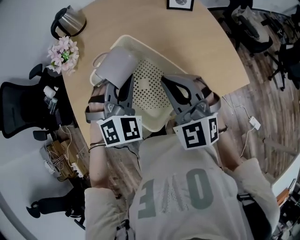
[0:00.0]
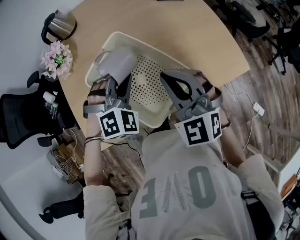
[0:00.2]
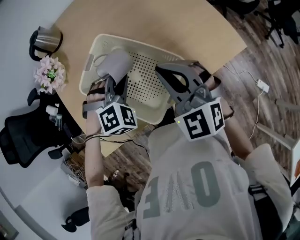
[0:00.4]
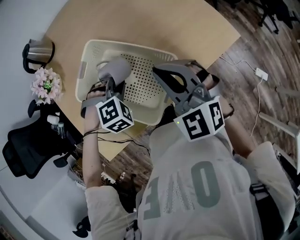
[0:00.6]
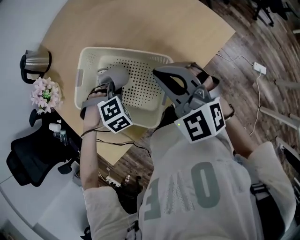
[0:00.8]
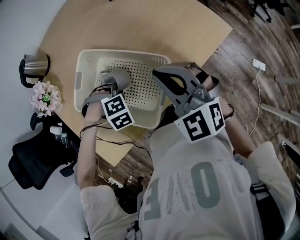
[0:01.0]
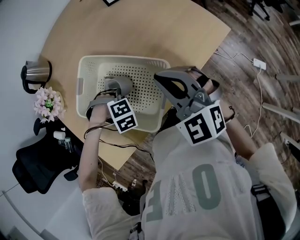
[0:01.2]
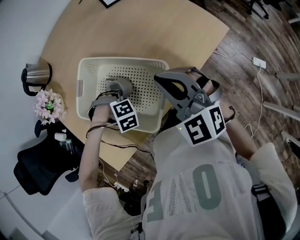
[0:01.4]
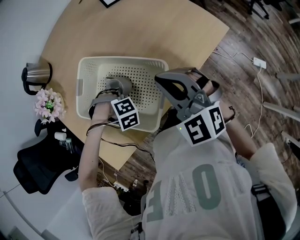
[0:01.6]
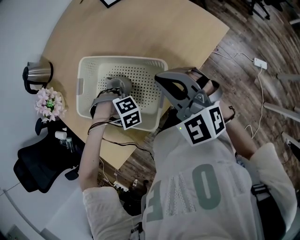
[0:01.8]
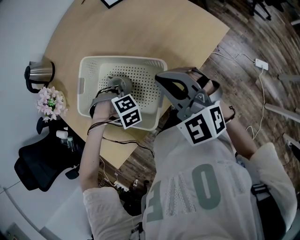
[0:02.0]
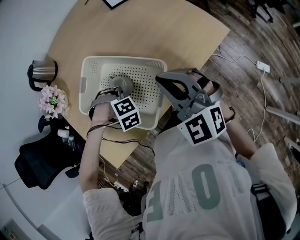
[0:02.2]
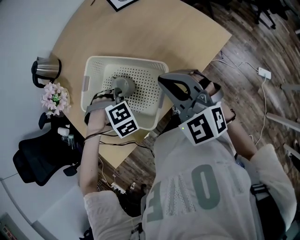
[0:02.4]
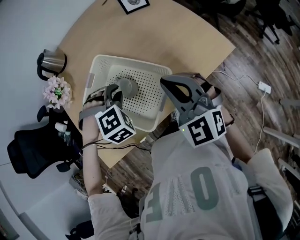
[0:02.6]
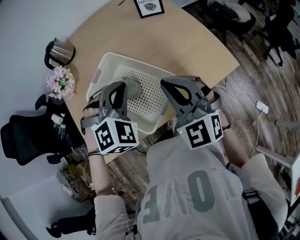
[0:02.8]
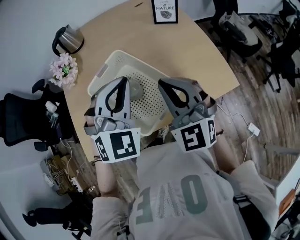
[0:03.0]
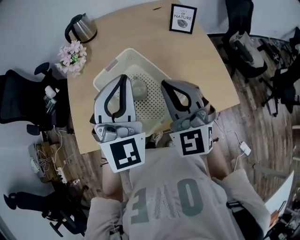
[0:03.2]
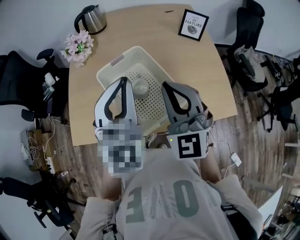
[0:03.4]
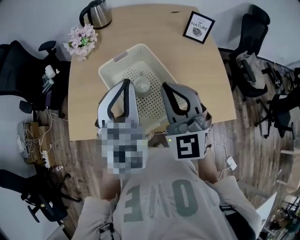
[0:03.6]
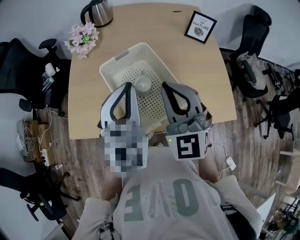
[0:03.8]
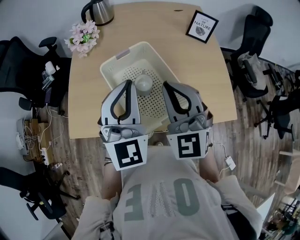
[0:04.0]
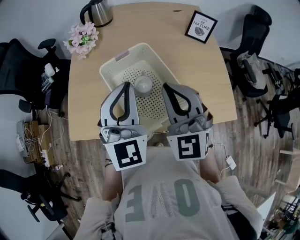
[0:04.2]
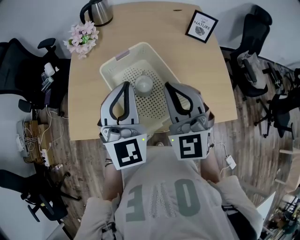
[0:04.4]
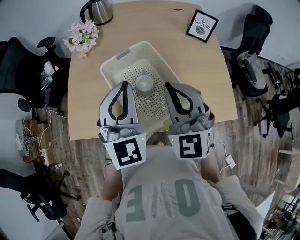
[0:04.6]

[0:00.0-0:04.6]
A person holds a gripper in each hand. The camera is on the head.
0:00.0 to 0:01.6: The left gripper moves downward, approximately 25 cm, and tilts its fingers approximately 50 degrees downward. The right gripper changes place by approximately 10 cm.
0:01.6 to 0:03.0: The left gripper moves upward, some 30 cm, and angles its fingers upward, by approximately 60 degrees. The right gripper is displaced upward by approximately 10 cm.
0:03.0 to 0:04.6: The left gripper moves to the left, some 10 cm, and turns by approximately 40 degrees. Meanwhile the right gripper travels to the left by roughly 5 cm.

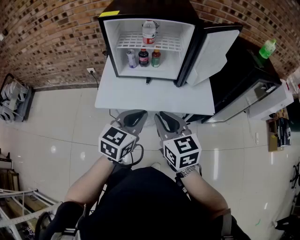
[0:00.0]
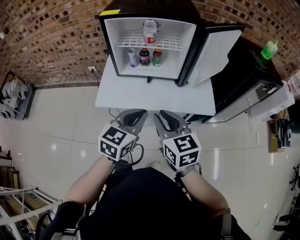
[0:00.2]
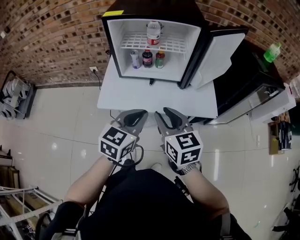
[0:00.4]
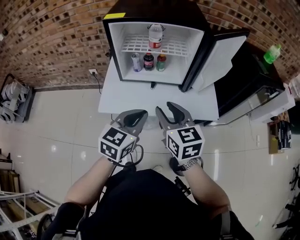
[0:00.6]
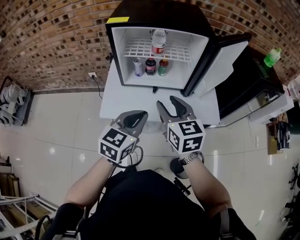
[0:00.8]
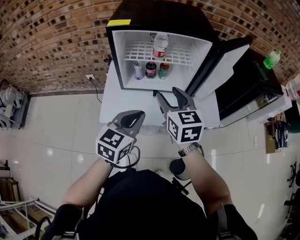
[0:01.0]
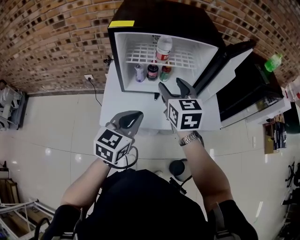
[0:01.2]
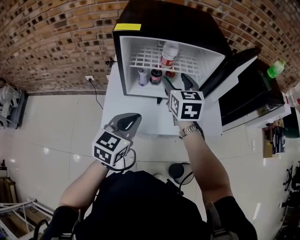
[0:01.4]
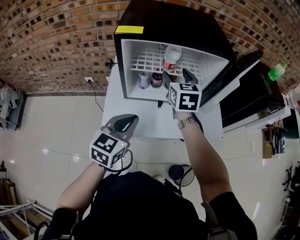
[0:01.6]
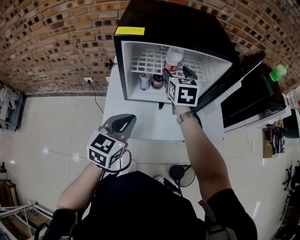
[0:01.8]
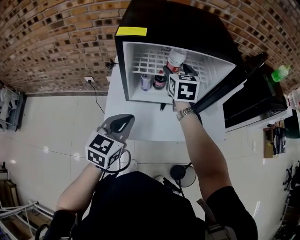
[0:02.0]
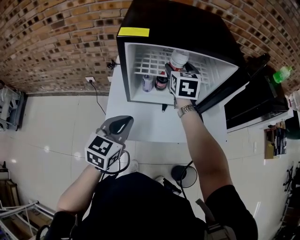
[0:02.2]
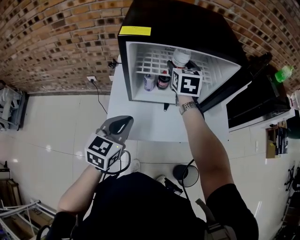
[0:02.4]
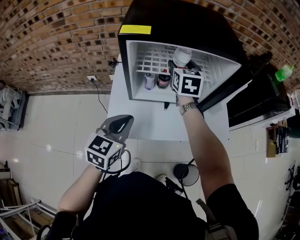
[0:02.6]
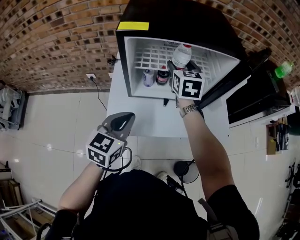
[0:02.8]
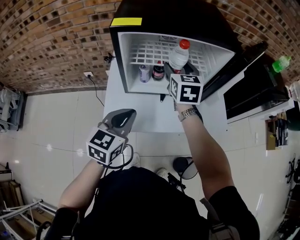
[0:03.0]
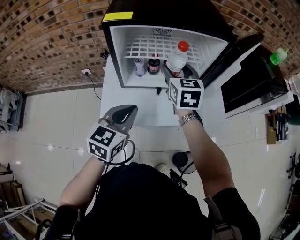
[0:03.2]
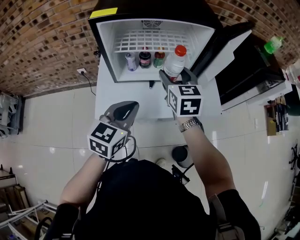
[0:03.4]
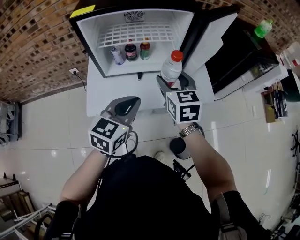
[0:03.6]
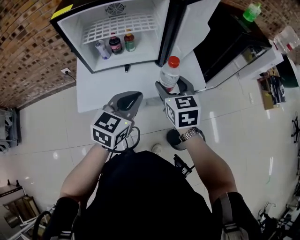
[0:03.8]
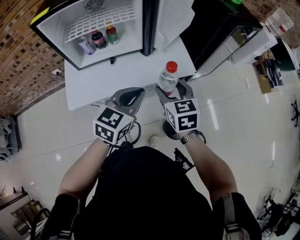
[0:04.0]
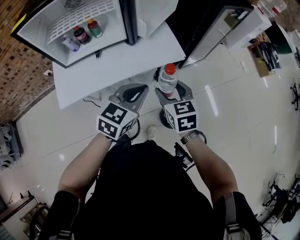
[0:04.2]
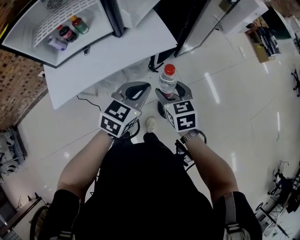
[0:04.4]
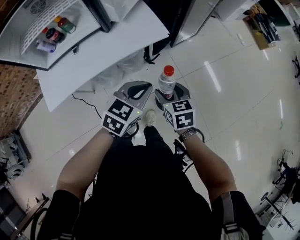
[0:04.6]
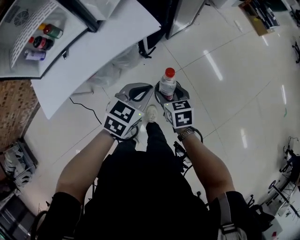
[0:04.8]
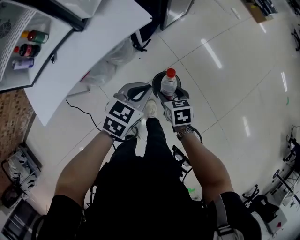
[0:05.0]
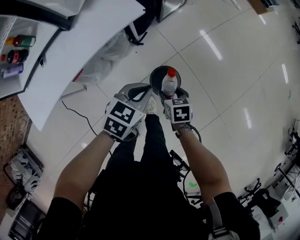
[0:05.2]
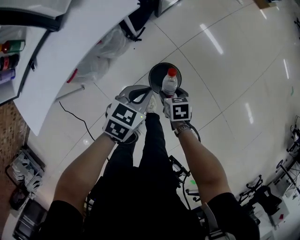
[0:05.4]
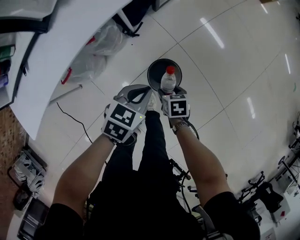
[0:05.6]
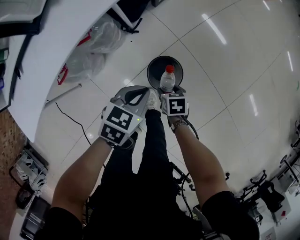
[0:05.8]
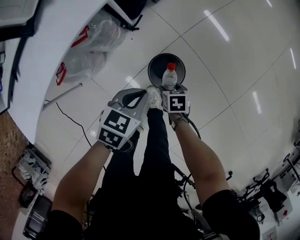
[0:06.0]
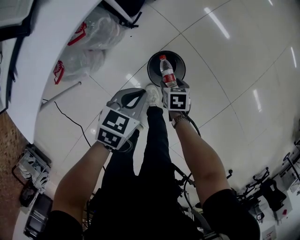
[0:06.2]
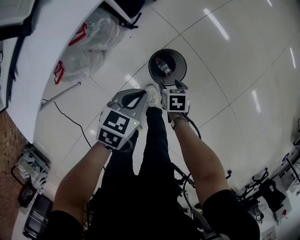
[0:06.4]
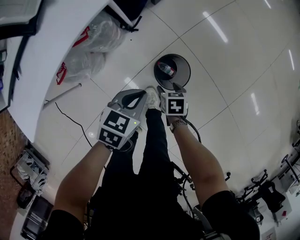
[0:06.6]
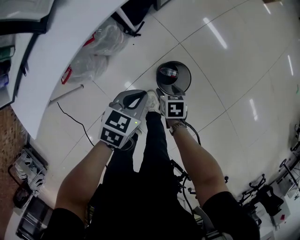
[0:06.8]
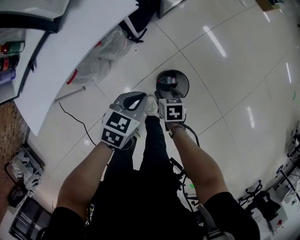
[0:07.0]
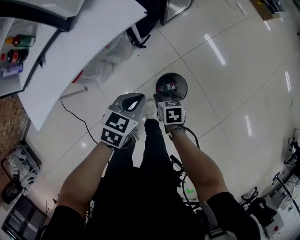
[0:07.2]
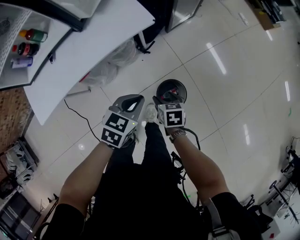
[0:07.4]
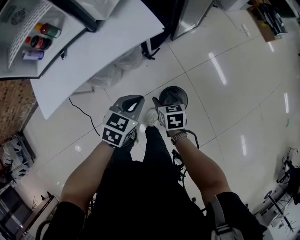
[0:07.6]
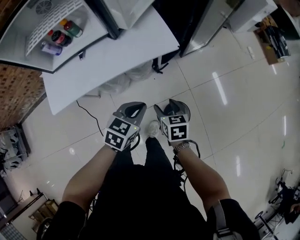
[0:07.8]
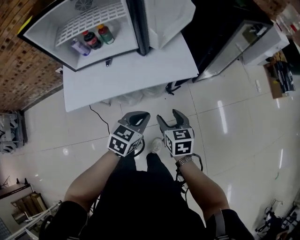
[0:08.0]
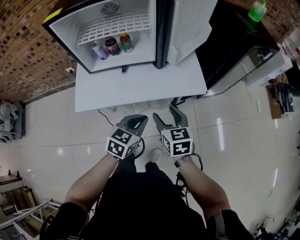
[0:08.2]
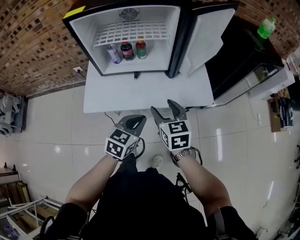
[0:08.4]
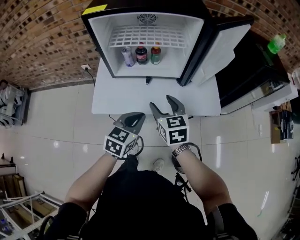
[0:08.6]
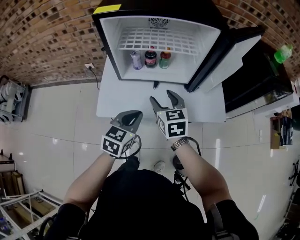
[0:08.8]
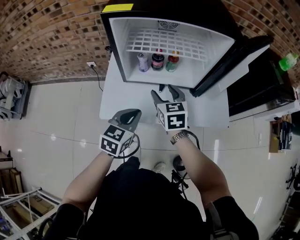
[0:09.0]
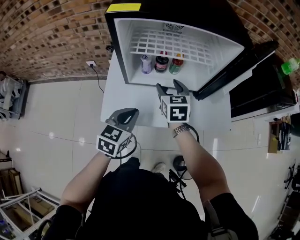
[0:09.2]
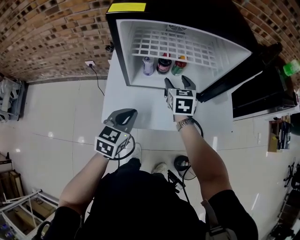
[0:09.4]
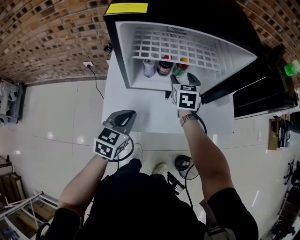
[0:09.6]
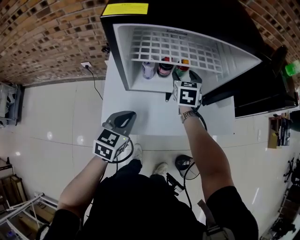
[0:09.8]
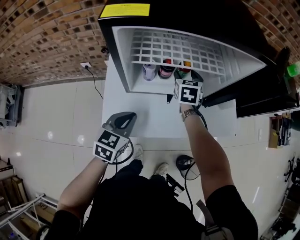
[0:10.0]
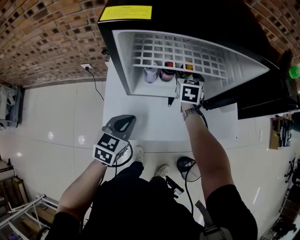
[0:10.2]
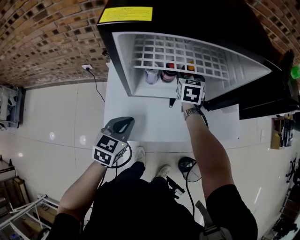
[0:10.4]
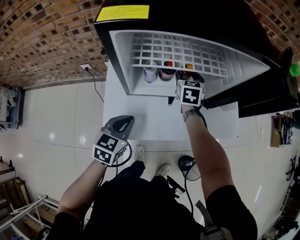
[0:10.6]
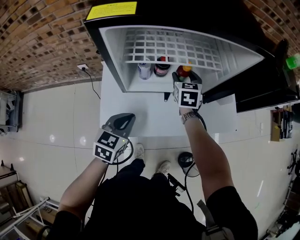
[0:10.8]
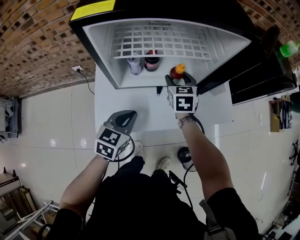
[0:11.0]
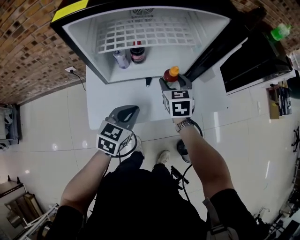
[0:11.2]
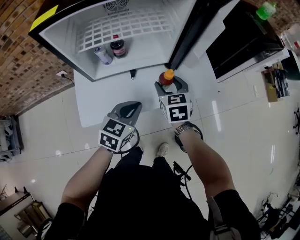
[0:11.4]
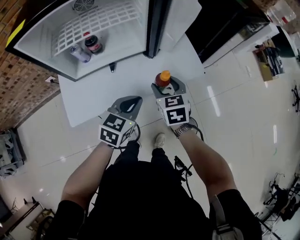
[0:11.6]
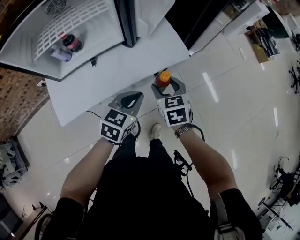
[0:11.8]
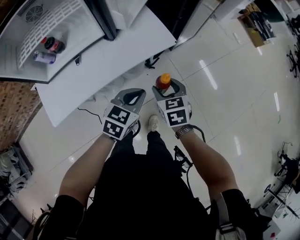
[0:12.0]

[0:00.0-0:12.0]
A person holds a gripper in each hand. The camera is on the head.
0:00.0 to 0:01.6: The right gripper moves forward, about 35 cm, rotates roughly 20 degrees, and opens its fingers, while the left gripper travels to the left and forward by some 20 cm.
0:01.6 to 0:03.0: The right gripper moves approximately 10 cm forward and comes back.
0:03.0 to 0:04.4: The two grippers travel together, to the right and backward, approximately 40 cm. The left gripper changes its angle by some 30 degrees, while the right gripper goes some 20 cm downward, and swivels roughly 20 degrees.
0:04.4 to 0:06.0: The two grippers go some 35 cm downward. The left gripper turns by some 30 degrees; the right gripper angles its fingers downward, by roughly 30 degrees.
0:06.0 to 0:07.6: The right gripper travels upward by approximately 25 cm, and swivels approximately 30 degrees, while the left gripper moves upward, approximately 15 cm, and changes its angle by some 20 degrees.
0:07.6 to 0:09.0: The left gripper shifts by about 40 cm, and turns by about 40 degrees, while the right gripper changes place by about 50 cm, and changes its angle by roughly 50 degrees.
0:09.0 to 0:10.4: The left gripper heads to the left and forward, covering roughly 10 cm, while the right gripper travels forward by roughly 20 cm, and changes its angle by roughly 20 degrees.
0:10.4 to 0:12.0: The right gripper travels to the right and backward by about 50 cm, while the left gripper moves to the right, about 40 cm, and turns by roughly 40 degrees.

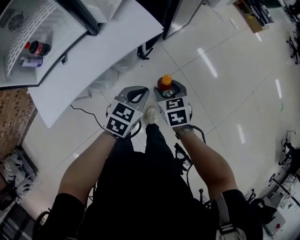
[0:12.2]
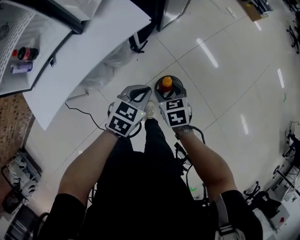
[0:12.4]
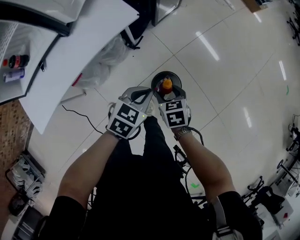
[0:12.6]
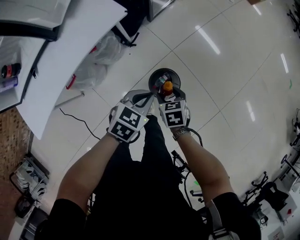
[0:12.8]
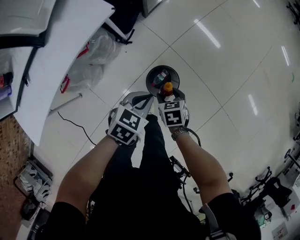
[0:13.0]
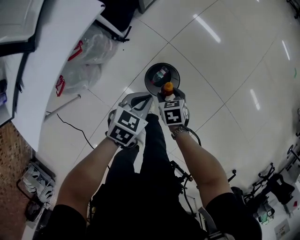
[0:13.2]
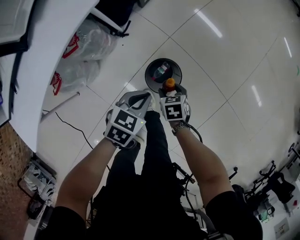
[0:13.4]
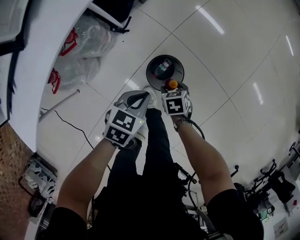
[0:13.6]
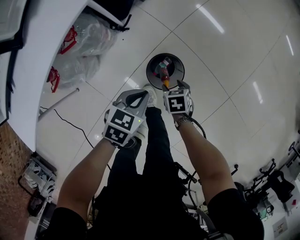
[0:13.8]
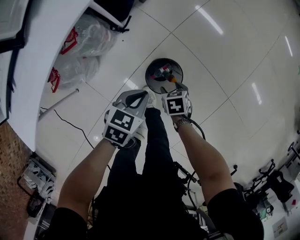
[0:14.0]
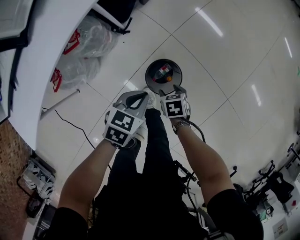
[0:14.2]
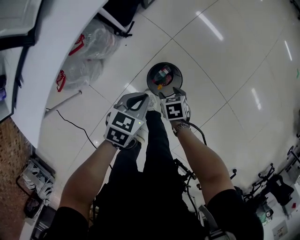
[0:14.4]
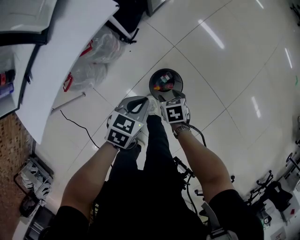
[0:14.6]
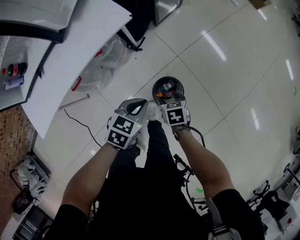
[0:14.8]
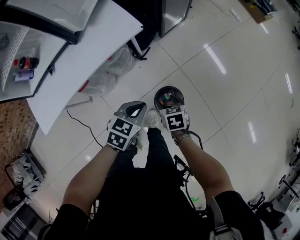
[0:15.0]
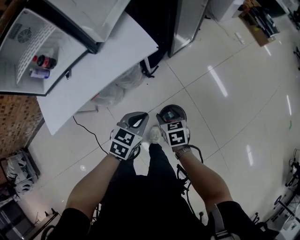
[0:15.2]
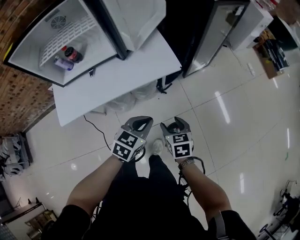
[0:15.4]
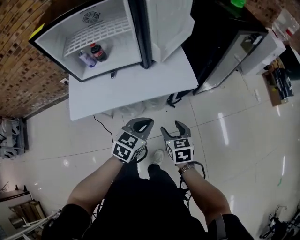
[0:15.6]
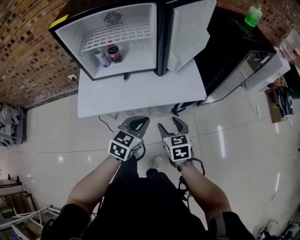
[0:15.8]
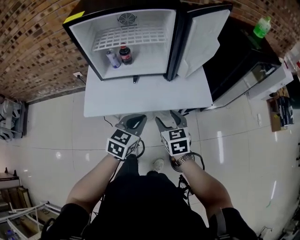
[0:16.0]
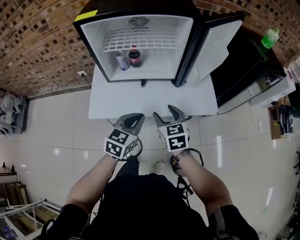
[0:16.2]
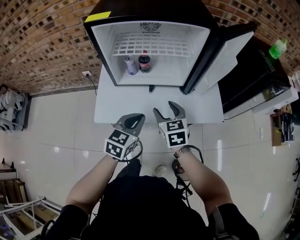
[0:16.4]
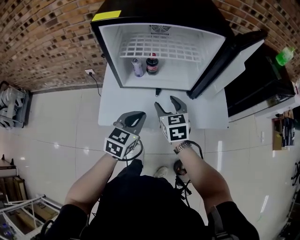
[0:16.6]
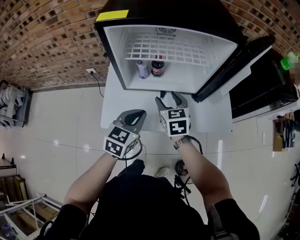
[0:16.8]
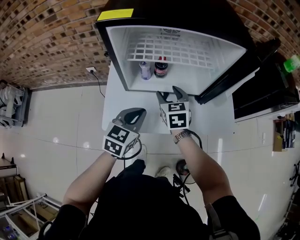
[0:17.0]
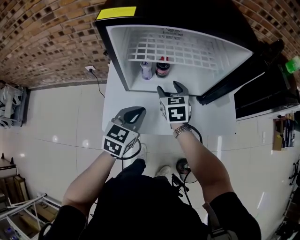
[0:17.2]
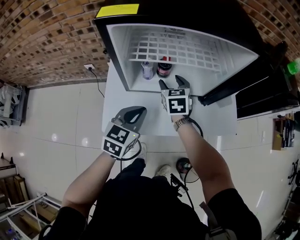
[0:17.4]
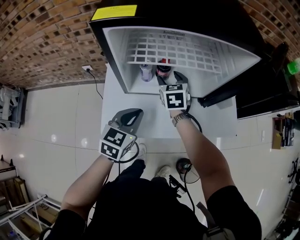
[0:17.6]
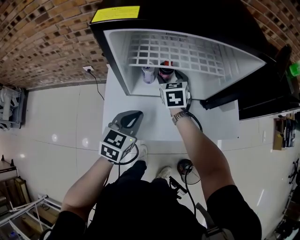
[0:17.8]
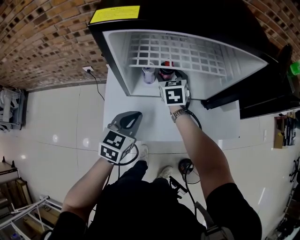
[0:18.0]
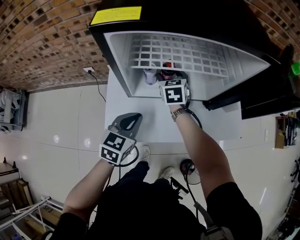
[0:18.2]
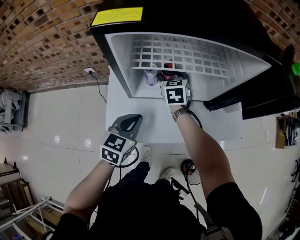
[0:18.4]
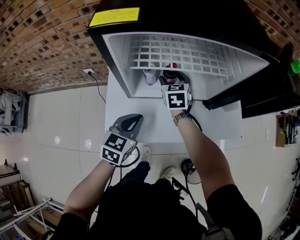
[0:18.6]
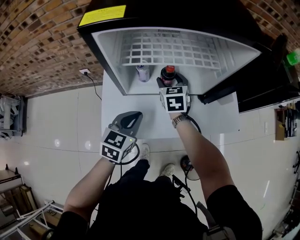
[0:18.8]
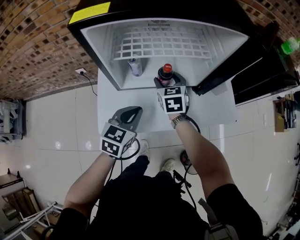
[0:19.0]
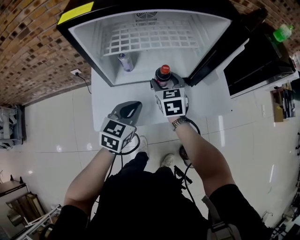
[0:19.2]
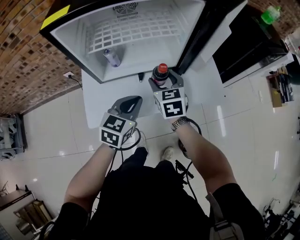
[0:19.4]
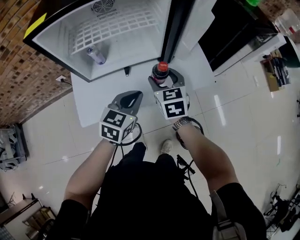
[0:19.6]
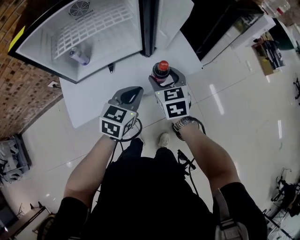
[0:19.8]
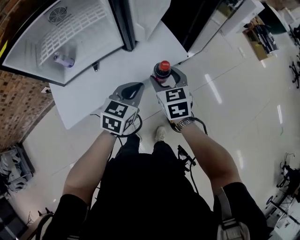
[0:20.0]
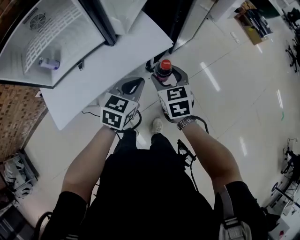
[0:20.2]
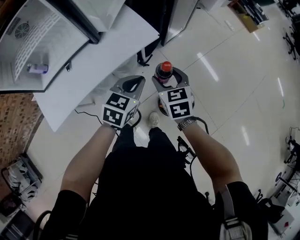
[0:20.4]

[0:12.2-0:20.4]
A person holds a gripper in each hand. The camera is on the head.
0:12.2 to 0:13.8: Both grippers travel together downward and to the right, about 30 cm. The left gripper rotates approximately 20 degrees, while the right gripper changes its angle by approximately 30 degrees.
0:13.8 to 0:15.4: The two grippers go approximately 25 cm upward. The left gripper rotates about 30 degrees, while the right gripper rotates some 40 degrees.
0:15.4 to 0:17.2: Both grippers are carried to the left and forward, approximately 50 cm. The right gripper swivels about 30 degrees. The left gripper rotates approximately 30 degrees.
0:17.2 to 0:18.8: The right gripper goes approximately 5 cm forward.
0:18.8 to 0:20.4: The two grippers travel together, some 50 cm. The right gripper swivels roughly 30 degrees, while the left gripper rotates about 40 degrees.
